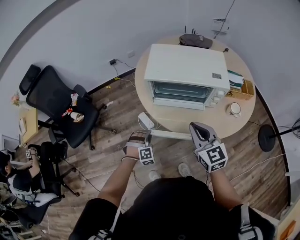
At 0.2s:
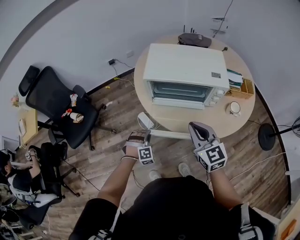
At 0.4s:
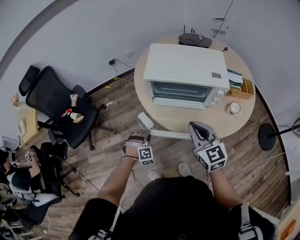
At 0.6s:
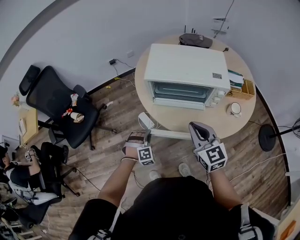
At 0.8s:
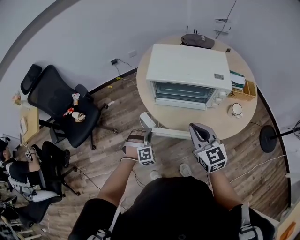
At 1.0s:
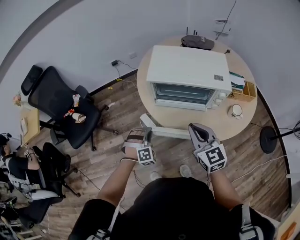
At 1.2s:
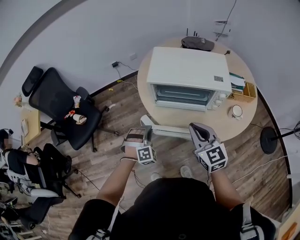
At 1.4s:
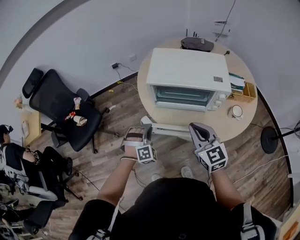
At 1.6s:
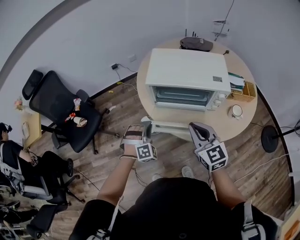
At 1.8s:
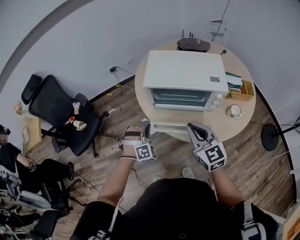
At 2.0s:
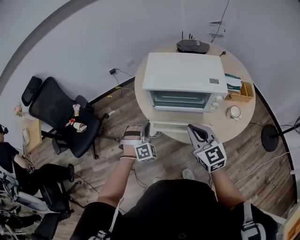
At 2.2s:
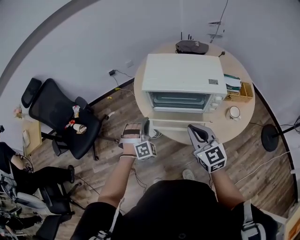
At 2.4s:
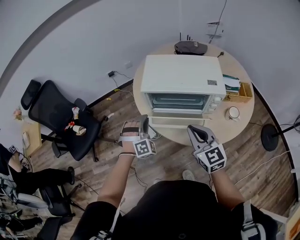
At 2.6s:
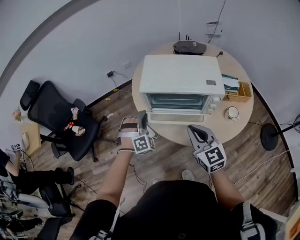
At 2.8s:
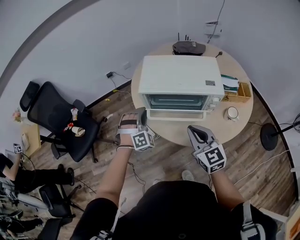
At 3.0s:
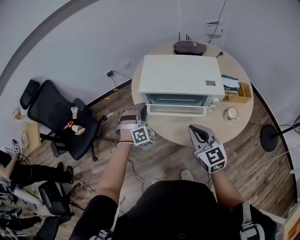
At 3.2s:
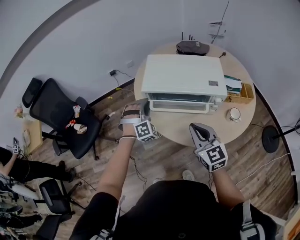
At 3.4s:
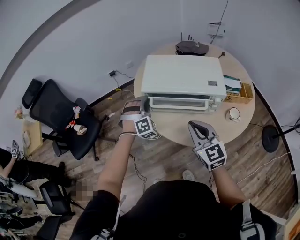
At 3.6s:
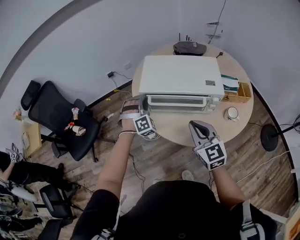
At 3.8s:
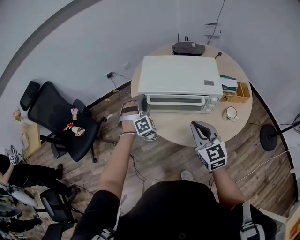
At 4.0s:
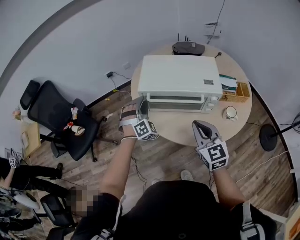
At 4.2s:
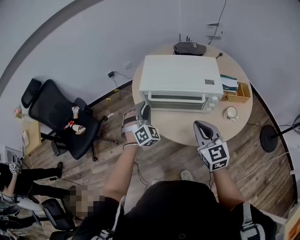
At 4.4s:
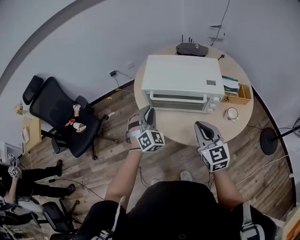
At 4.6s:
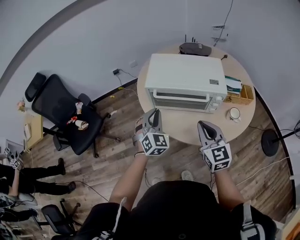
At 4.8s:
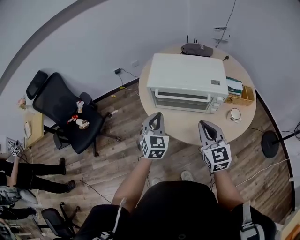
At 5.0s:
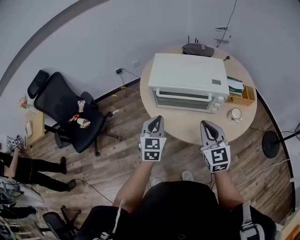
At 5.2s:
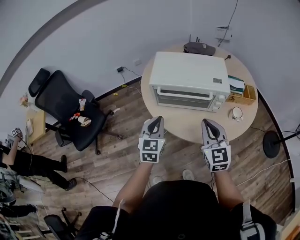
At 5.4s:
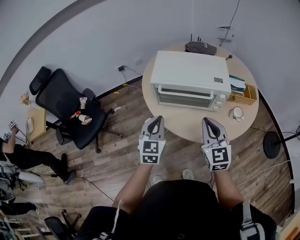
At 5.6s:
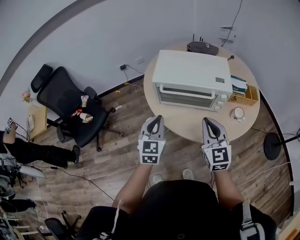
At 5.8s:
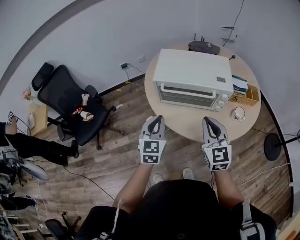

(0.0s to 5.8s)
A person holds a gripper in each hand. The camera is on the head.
0.0s - 1.4s: The left gripper is displaced upward by about 10 cm.
1.4s - 2.8s: The left gripper shifts about 10 cm forward and upward.
2.8s - 4.4s: The left gripper shifts by about 5 cm, and changes its angle by about 30 degrees.
4.4s - 5.8s: The left gripper moves backward, some 10 cm, and rotates around the line of its fingers by about 40 degrees, counterclockwise from behind.

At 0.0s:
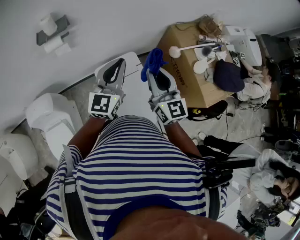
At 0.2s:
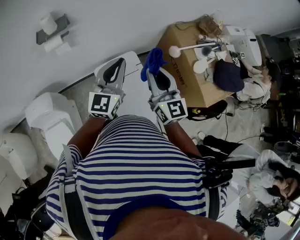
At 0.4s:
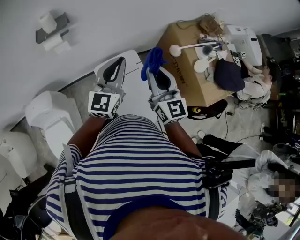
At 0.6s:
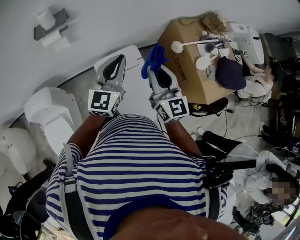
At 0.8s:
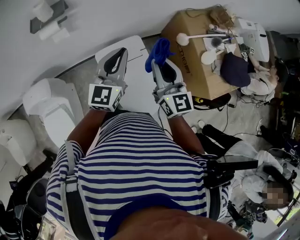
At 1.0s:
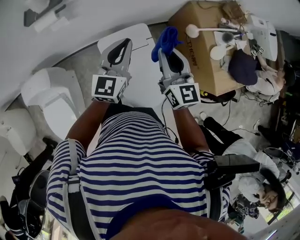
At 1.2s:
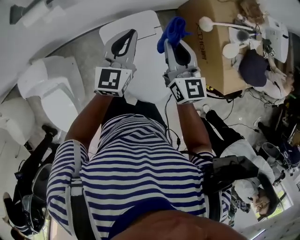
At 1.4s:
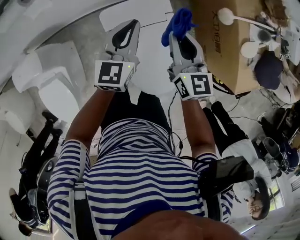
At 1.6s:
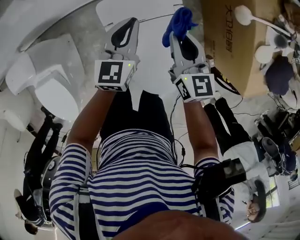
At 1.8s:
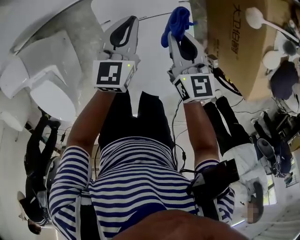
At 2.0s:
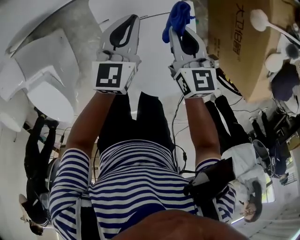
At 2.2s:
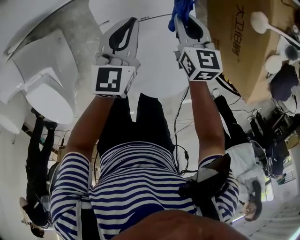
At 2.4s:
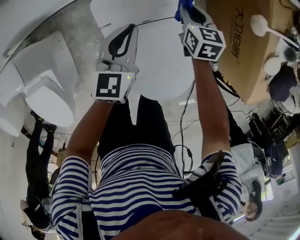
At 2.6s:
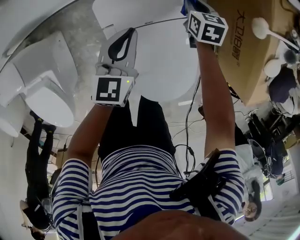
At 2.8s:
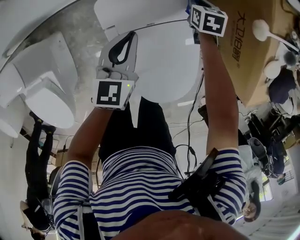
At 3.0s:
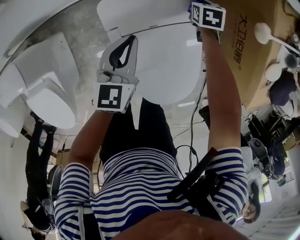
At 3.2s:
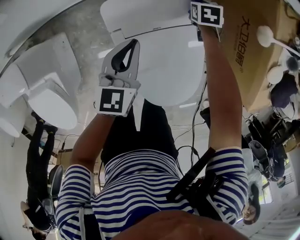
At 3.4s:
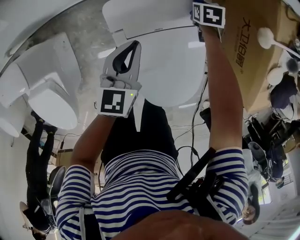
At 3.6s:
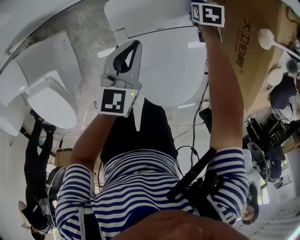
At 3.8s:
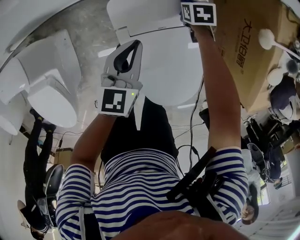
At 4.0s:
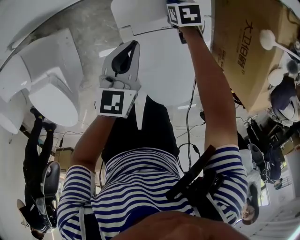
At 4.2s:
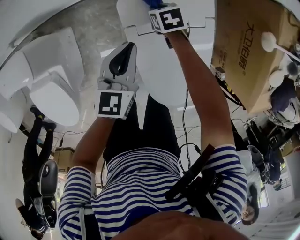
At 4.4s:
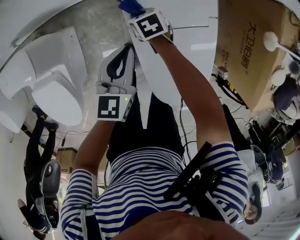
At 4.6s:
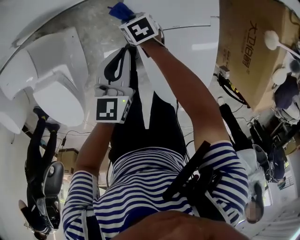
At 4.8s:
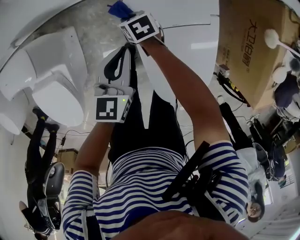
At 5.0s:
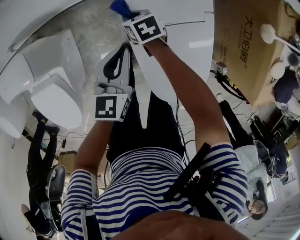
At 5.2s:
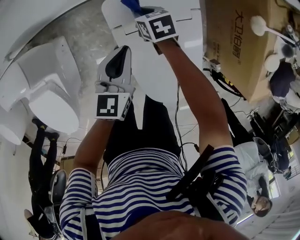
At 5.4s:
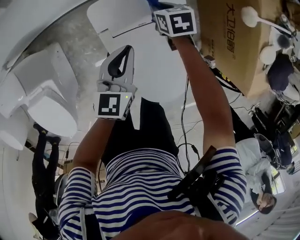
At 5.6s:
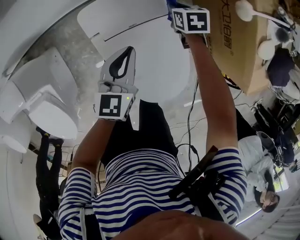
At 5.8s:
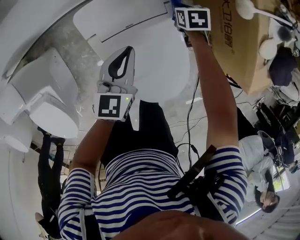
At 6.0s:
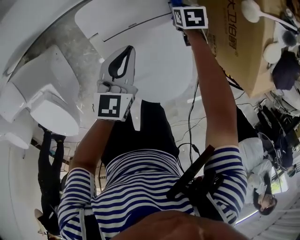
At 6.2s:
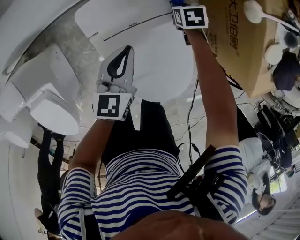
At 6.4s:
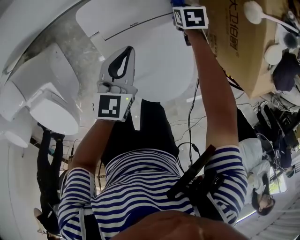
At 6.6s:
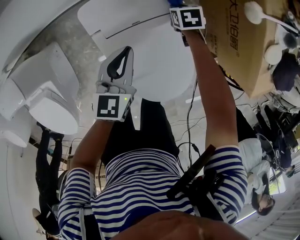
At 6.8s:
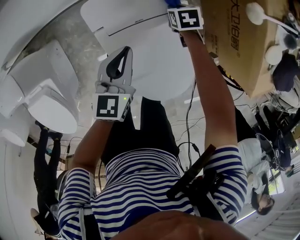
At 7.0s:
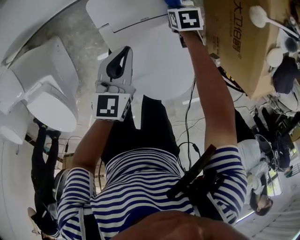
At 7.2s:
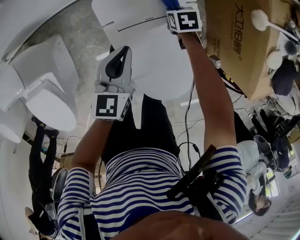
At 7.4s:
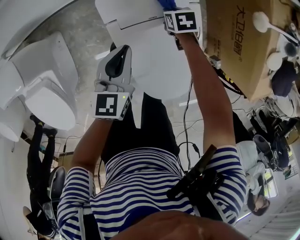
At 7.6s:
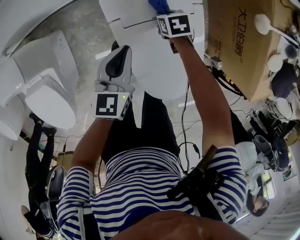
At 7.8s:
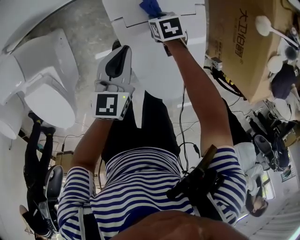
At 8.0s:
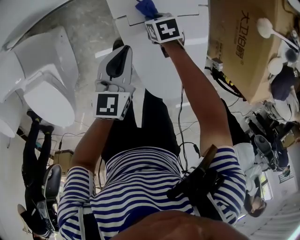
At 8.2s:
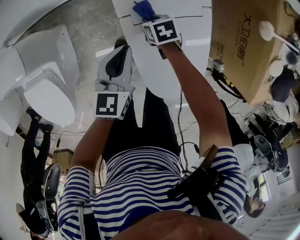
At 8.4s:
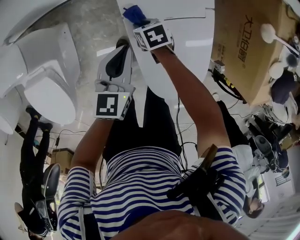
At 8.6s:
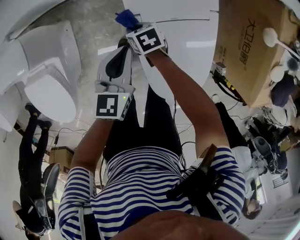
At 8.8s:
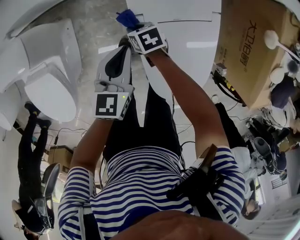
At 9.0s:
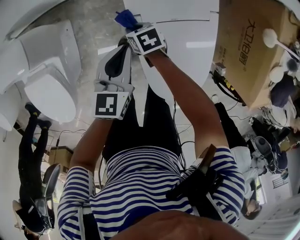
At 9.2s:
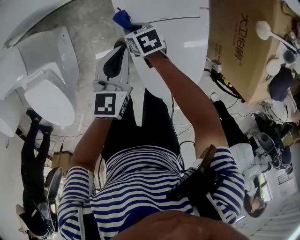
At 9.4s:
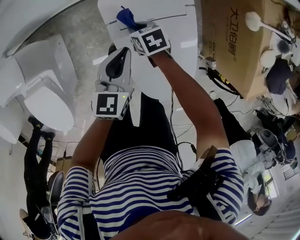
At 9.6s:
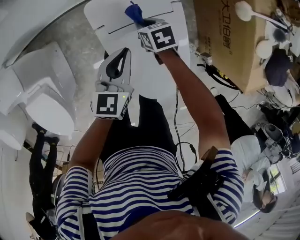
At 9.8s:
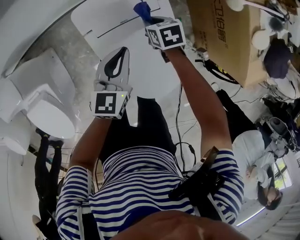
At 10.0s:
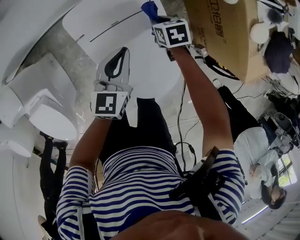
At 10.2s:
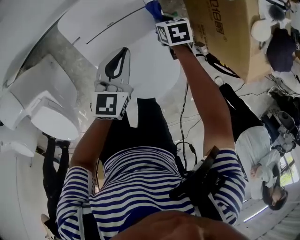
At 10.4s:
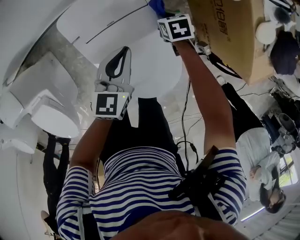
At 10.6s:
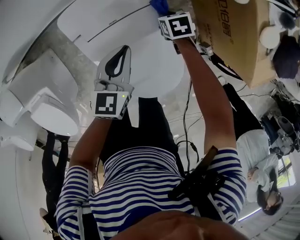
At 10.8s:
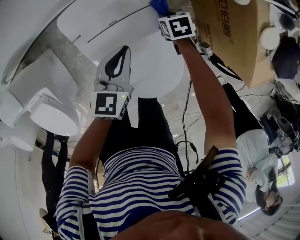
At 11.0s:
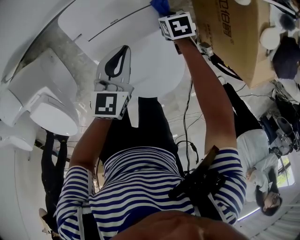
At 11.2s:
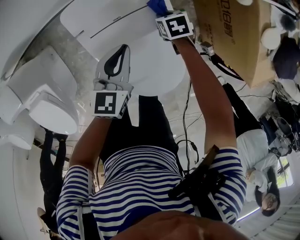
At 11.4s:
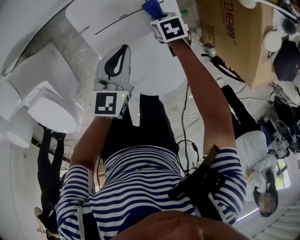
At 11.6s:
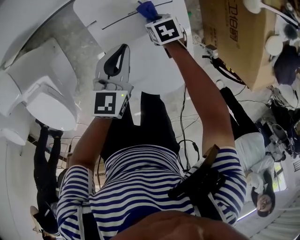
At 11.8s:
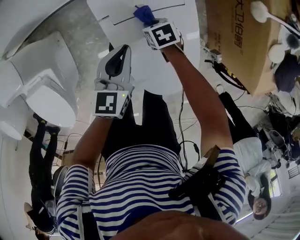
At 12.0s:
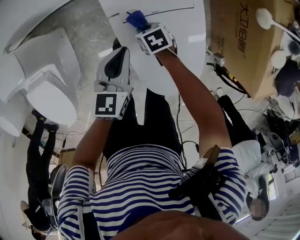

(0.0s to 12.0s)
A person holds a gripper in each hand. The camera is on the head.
0.0s - 1.6s: Both grippers move downward and forward, some 40 cm. The right gripper changes its angle by roughly 30 degrees, while the left gripper changes its angle by some 30 degrees.
1.6s - 3.0s: The right gripper travels downward and forward by roughly 35 cm, and angles its fingers downward, by about 40 degrees. Meanwhile the left gripper travels downward and to the left by some 10 cm.
3.0s - 4.4s: The left gripper moves roughly 10 cm. Meanwhile the right gripper changes place by approximately 35 cm, and turns by roughly 30 degrees.
4.4s - 6.0s: The left gripper changes place by some 20 cm; the right gripper changes place by about 35 cm, and turns by about 30 degrees.
6.0s - 7.6s: The right gripper travels to the left by some 20 cm, while the left gripper travels to the left by roughly 10 cm.
7.6s - 9.0s: The left gripper heads to the left, covering approximately 10 cm. Meanwhile the right gripper heads to the left, covering approximately 20 cm.
9.0s - 10.4s: The right gripper shifts by roughly 40 cm, and turns by some 20 degrees. Meanwhile the left gripper shifts by approximately 25 cm.
10.4s - 12.0s: The right gripper shifts by some 30 cm, and rotates approximately 20 degrees. The left gripper moves roughly 20 cm.

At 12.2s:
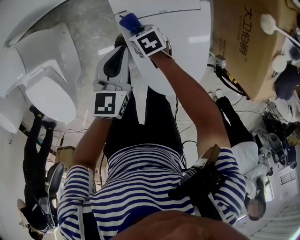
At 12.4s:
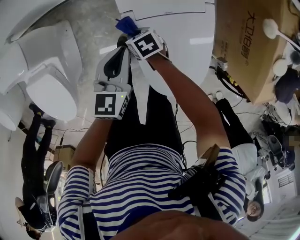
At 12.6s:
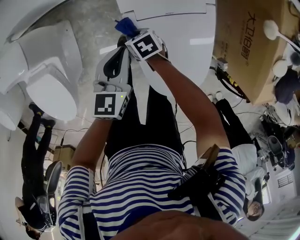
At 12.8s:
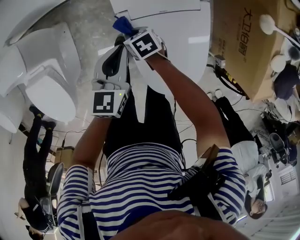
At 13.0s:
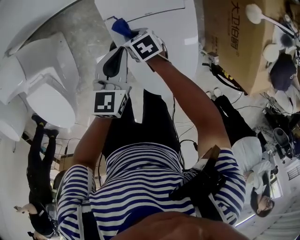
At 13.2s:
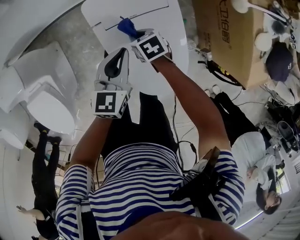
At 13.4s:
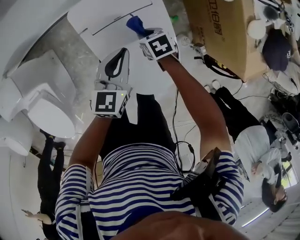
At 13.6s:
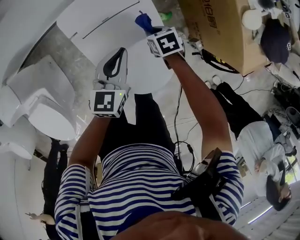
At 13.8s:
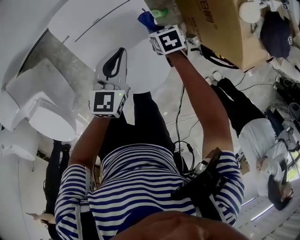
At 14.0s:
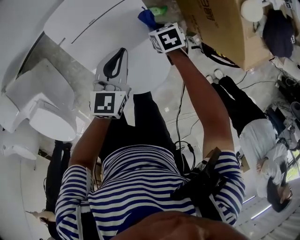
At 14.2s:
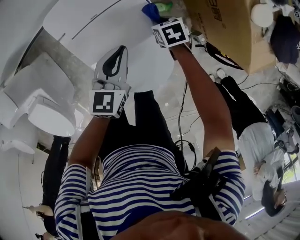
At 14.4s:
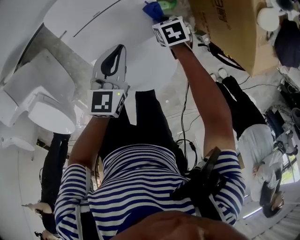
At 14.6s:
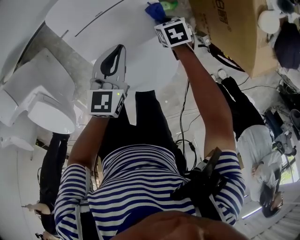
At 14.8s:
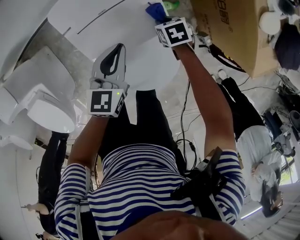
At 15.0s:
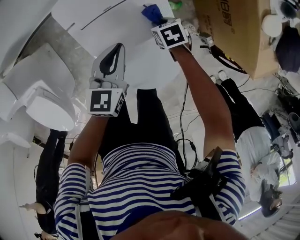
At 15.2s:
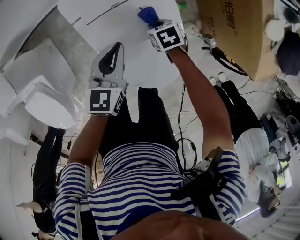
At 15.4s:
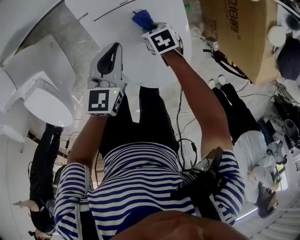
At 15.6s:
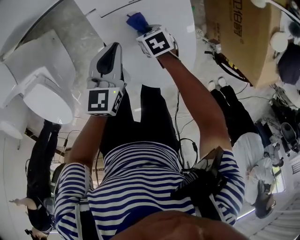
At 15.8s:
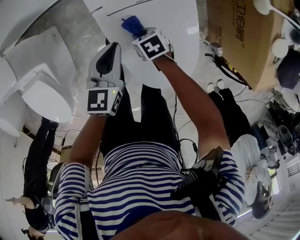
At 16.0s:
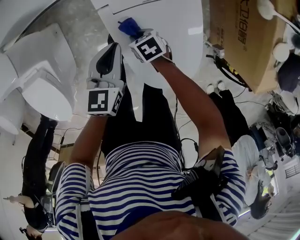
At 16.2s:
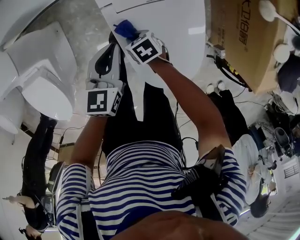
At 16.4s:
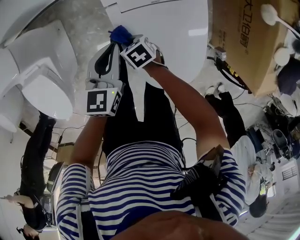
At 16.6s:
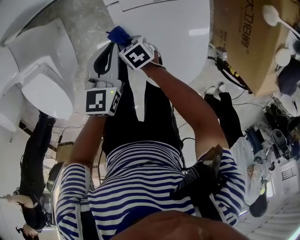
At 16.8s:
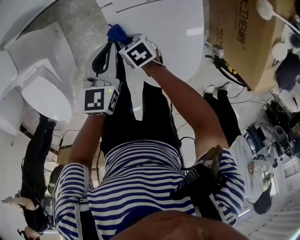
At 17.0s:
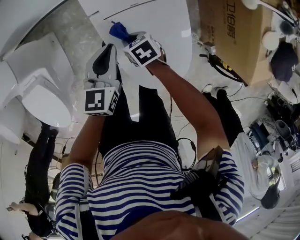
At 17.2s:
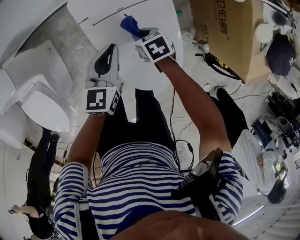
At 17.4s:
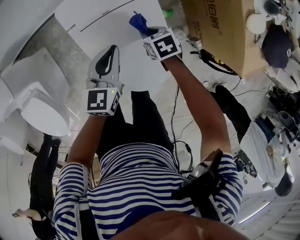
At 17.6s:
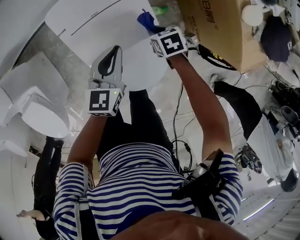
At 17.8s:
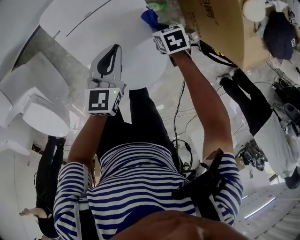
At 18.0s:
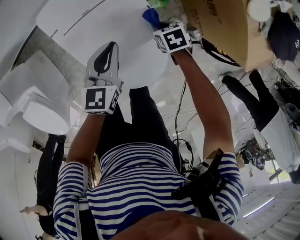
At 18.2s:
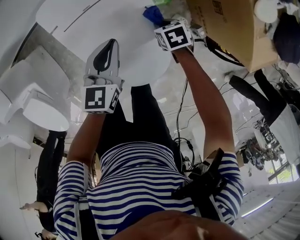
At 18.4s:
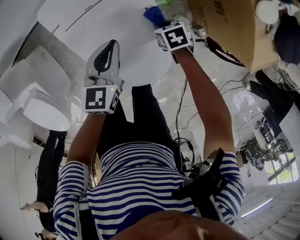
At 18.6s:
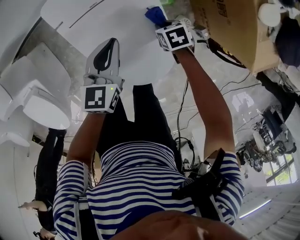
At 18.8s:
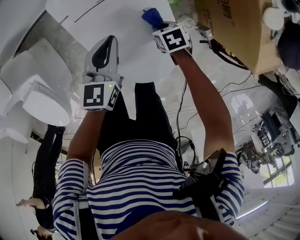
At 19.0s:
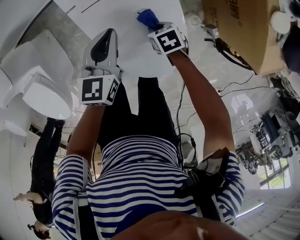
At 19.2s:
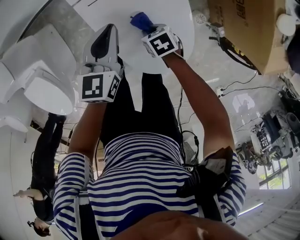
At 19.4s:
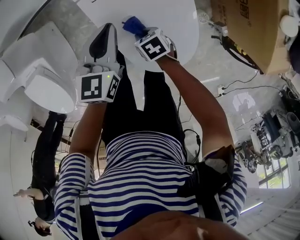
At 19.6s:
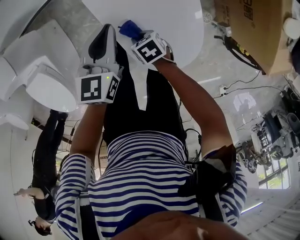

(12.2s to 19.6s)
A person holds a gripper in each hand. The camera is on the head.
12.2s - 13.6s: The right gripper changes place by approximately 30 cm. The left gripper moves some 20 cm.
13.6s - 15.2s: The two grippers go about 5 cm downward.
15.2s - 16.6s: The right gripper travels to the left by roughly 25 cm, and swivels approximately 20 degrees. The left gripper moves to the left and forward, roughly 15 cm.
16.6s - 18.2s: The left gripper moves about 25 cm. Meanwhile the right gripper moves approximately 40 cm, and swivels approximately 30 degrees.
18.2s - 19.6s: The right gripper is displaced to the left by about 30 cm, while the left gripper is displaced to the left and forward by about 15 cm.
